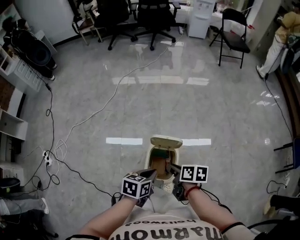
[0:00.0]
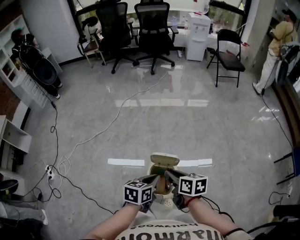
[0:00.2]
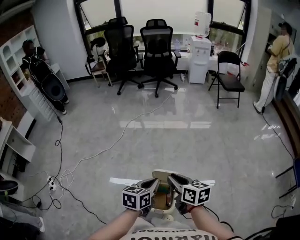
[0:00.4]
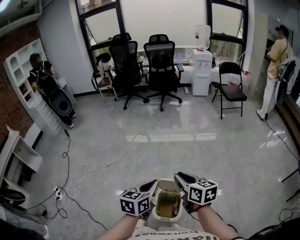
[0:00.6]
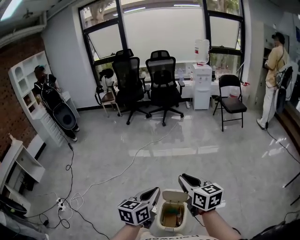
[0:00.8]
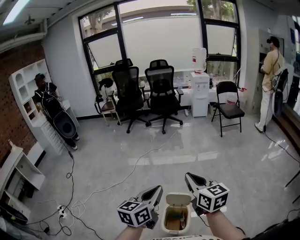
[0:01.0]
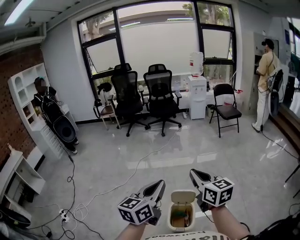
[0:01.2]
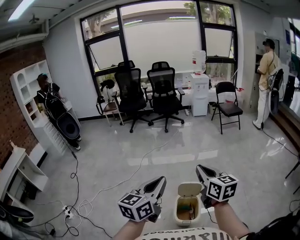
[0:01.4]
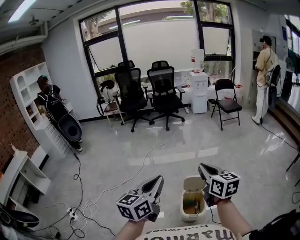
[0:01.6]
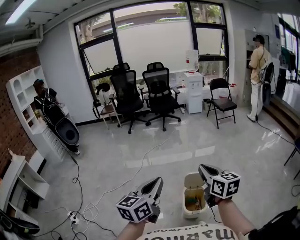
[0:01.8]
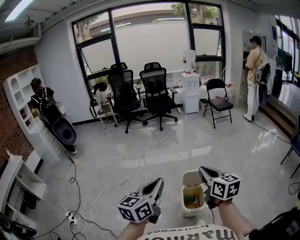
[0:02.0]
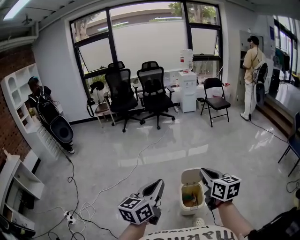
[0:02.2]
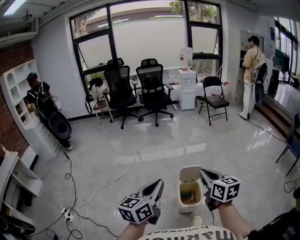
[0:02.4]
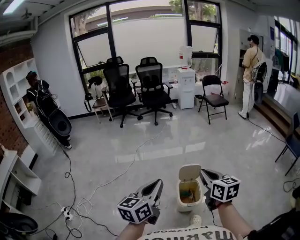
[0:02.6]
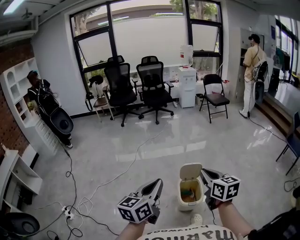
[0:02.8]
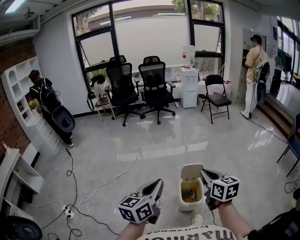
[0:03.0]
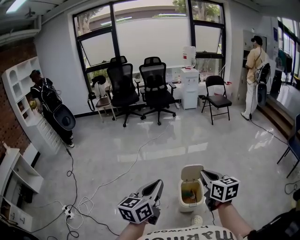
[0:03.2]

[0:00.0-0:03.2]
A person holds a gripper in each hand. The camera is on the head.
0:00.0 to 0:01.6: The right gripper shifts approximately 40 cm upward, and tips its fingers upward by roughly 30 degrees. The left gripper heads upward and to the left, covering some 40 cm, and points its fingers approximately 40 degrees further upward.
0:01.6 to 0:03.2: The right gripper is displaced backward and downward by about 10 cm; the left gripper is displaced backward by roughly 5 cm.

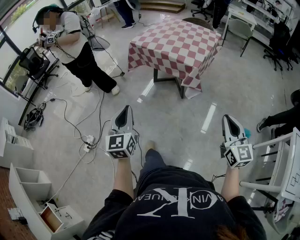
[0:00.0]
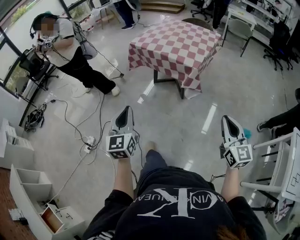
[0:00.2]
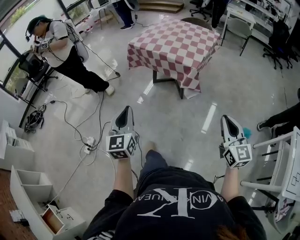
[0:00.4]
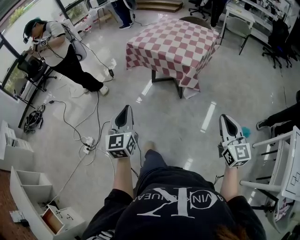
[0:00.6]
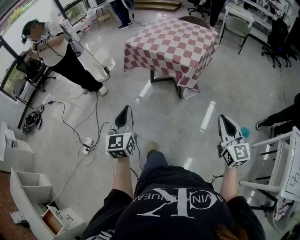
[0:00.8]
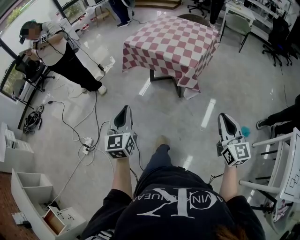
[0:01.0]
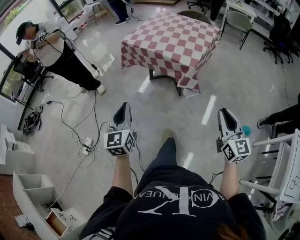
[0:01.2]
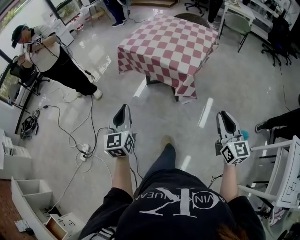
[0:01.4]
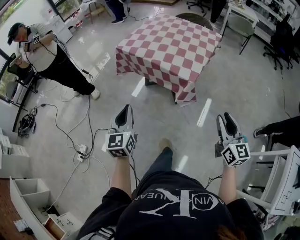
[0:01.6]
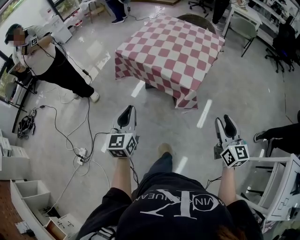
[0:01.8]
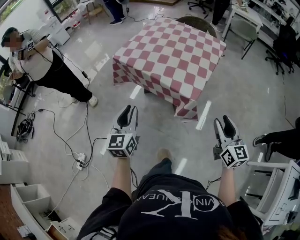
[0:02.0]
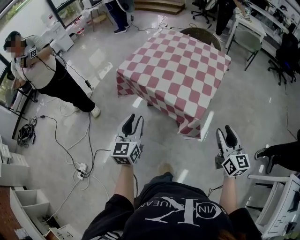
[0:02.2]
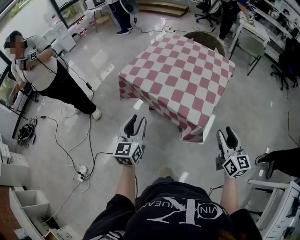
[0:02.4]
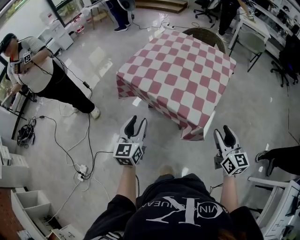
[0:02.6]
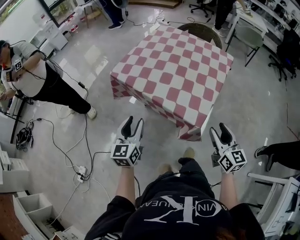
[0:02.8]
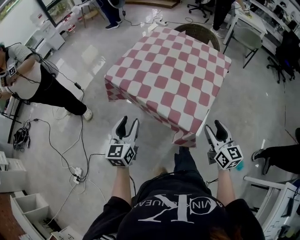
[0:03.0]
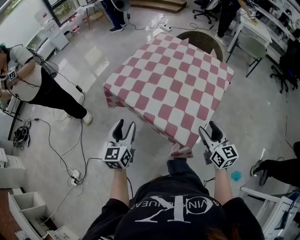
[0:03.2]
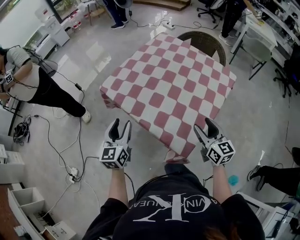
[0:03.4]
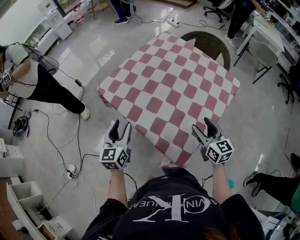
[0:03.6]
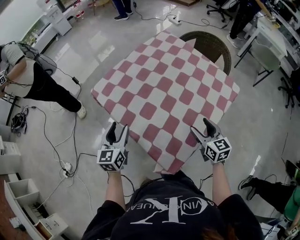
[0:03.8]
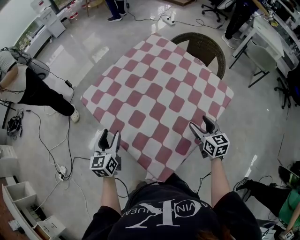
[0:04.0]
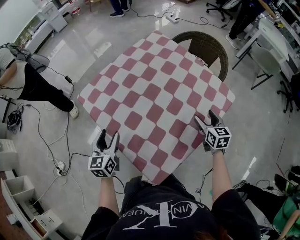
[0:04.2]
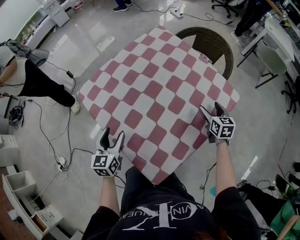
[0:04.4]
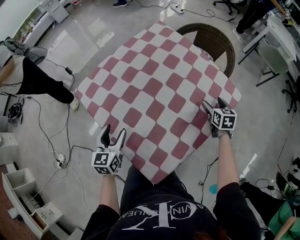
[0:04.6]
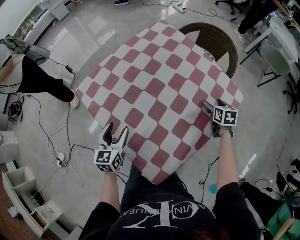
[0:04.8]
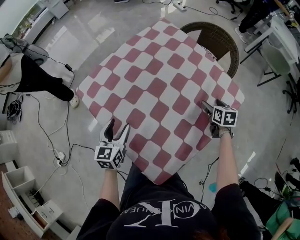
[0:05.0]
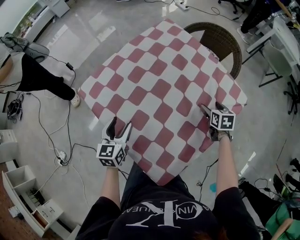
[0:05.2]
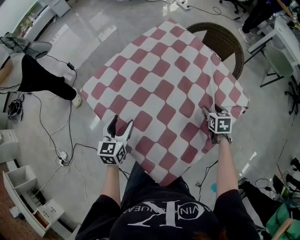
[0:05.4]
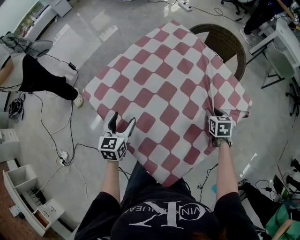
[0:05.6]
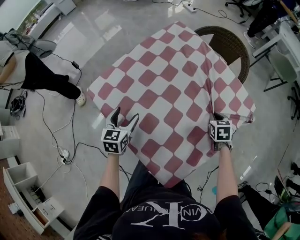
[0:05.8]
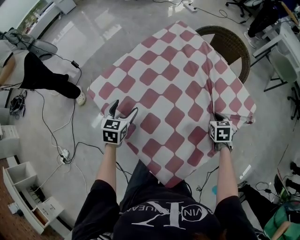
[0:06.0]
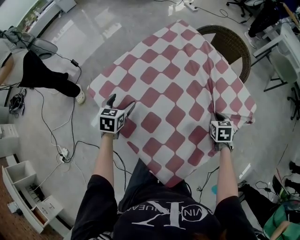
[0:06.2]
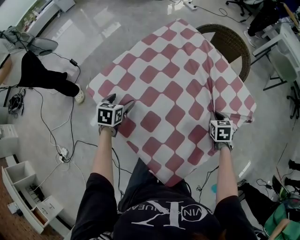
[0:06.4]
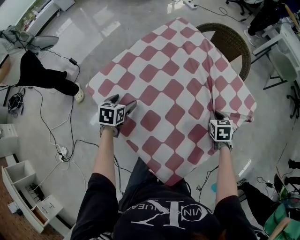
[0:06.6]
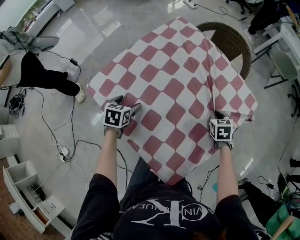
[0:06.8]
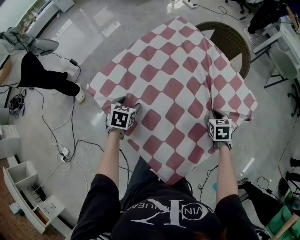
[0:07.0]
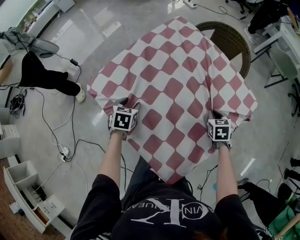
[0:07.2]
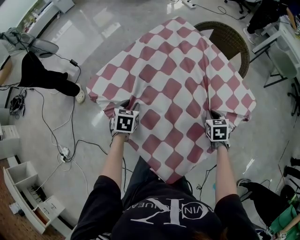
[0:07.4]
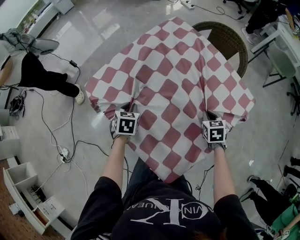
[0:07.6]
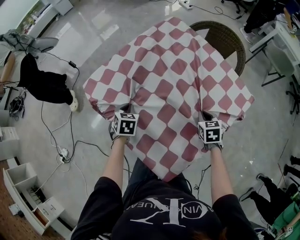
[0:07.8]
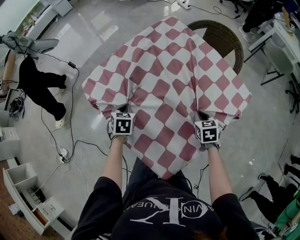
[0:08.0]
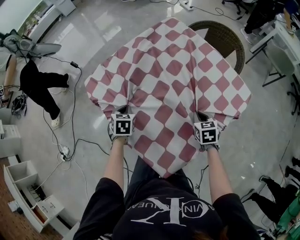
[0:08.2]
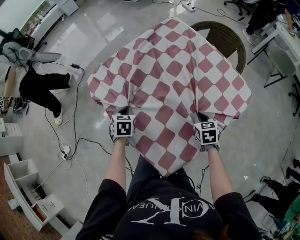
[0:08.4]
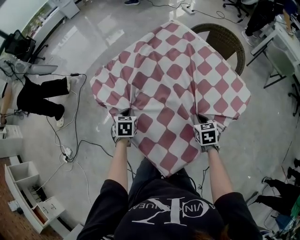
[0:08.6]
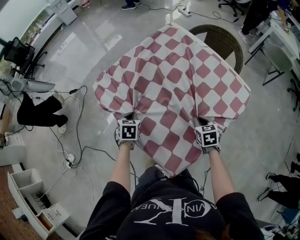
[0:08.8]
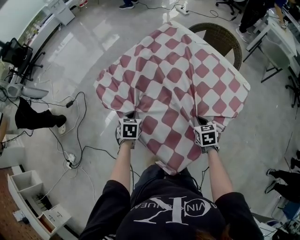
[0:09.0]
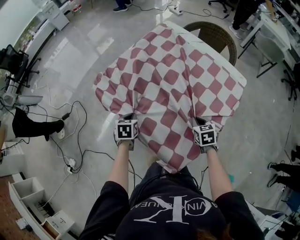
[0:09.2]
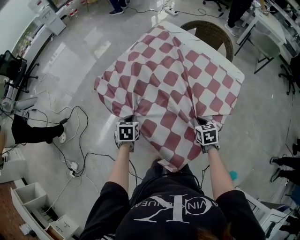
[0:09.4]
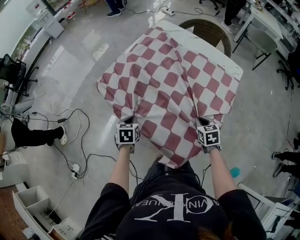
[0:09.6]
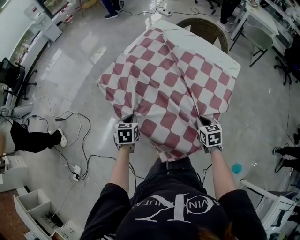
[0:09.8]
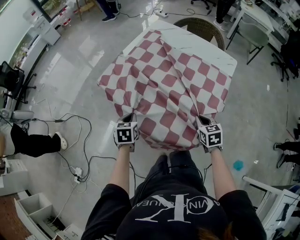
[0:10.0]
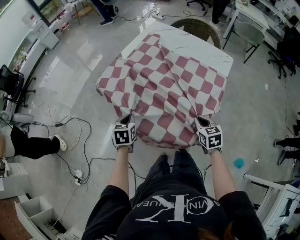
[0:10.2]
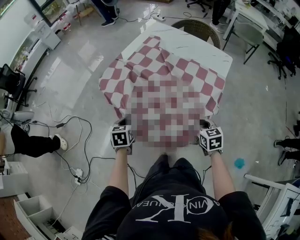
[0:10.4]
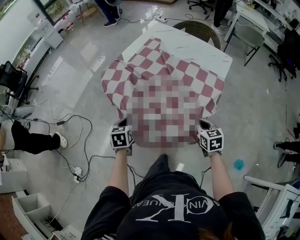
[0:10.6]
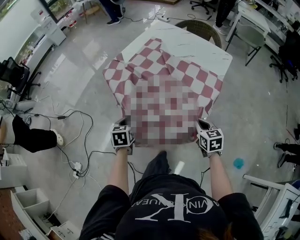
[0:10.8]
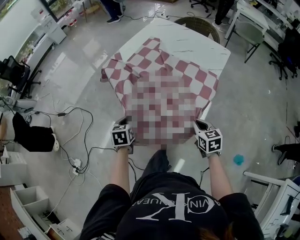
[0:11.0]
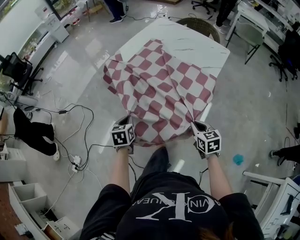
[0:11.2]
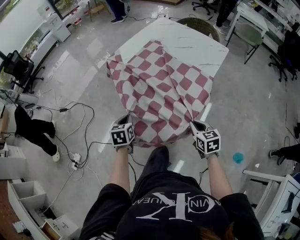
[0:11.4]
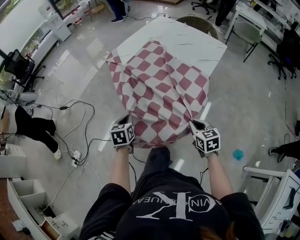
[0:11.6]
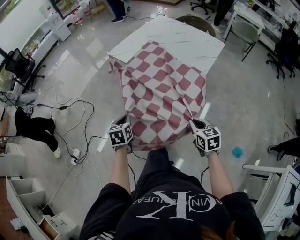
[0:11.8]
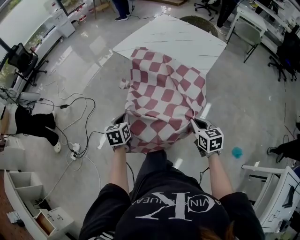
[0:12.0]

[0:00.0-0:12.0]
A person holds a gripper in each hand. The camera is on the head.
0:00.0 to 0:01.6: The two grippers go roughly 20 cm forward.
0:01.6 to 0:03.0: Both grippers travel together forward, roughly 30 cm. The left gripper opens up.
0:03.0 to 0:04.4: The left gripper shifts roughly 25 cm forward, to the right and downward; the right gripper goes some 40 cm forward and to the right, swivels some 30 degrees, and opens.
0:04.4 to 0:06.0: The left gripper travels forward and downward by some 15 cm. The right gripper moves to the left and downward, roughly 10 cm, swivels some 30 degrees, and closes its fingers.
0:06.0 to 0:07.6: The left gripper changes place by about 5 cm, and closes its fingers.
0:07.6 to 0:09.0: The right gripper shifts about 10 cm backward and to the left. Meanwhile the left gripper travels backward by some 5 cm.
0:09.0 to 0:10.4: The left gripper moves backward, to the left and upward, about 15 cm; the right gripper travels backward by roughly 20 cm.
0:10.4 to 0:12.0: Both grippers move backward, roughly 25 cm.

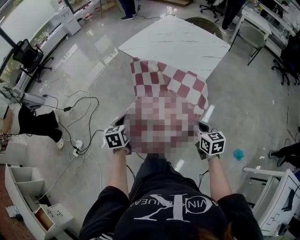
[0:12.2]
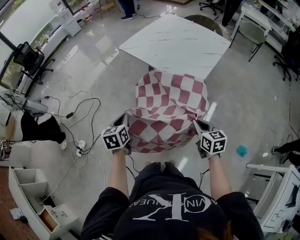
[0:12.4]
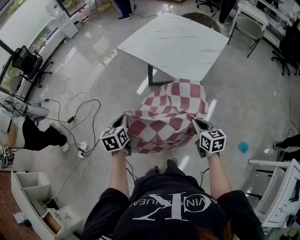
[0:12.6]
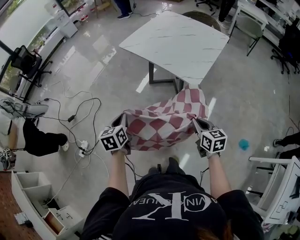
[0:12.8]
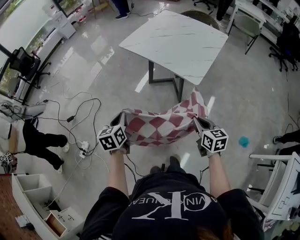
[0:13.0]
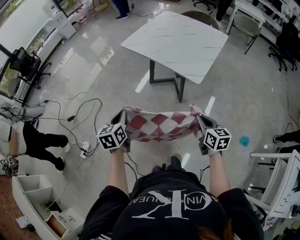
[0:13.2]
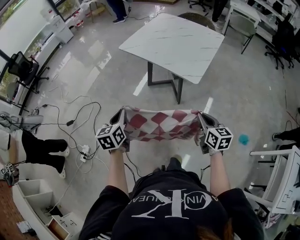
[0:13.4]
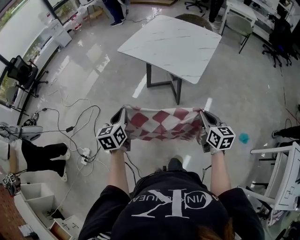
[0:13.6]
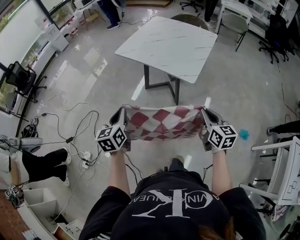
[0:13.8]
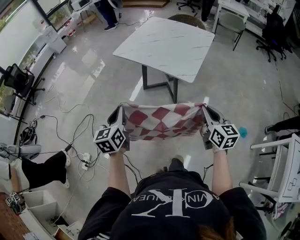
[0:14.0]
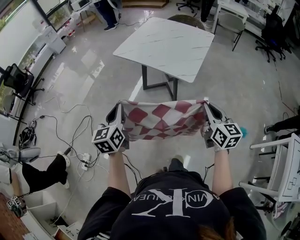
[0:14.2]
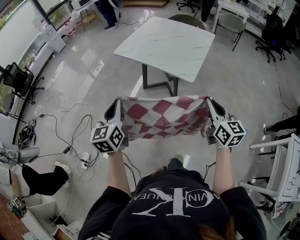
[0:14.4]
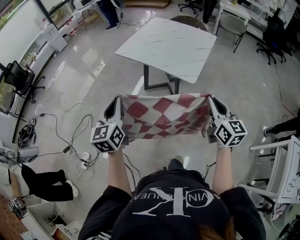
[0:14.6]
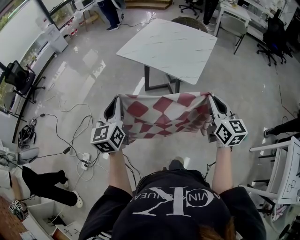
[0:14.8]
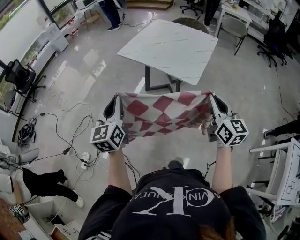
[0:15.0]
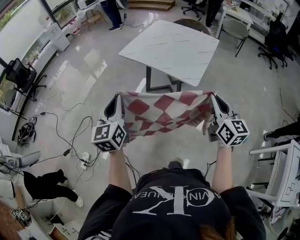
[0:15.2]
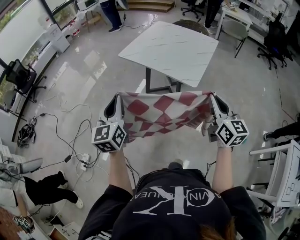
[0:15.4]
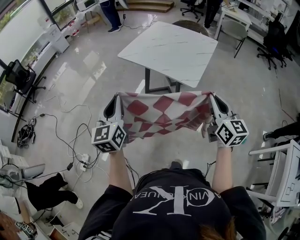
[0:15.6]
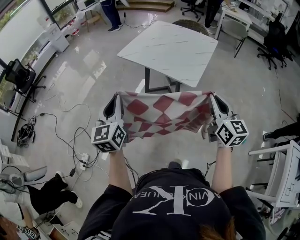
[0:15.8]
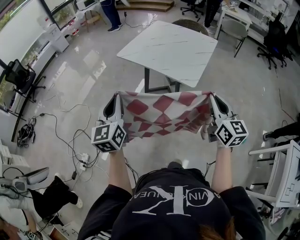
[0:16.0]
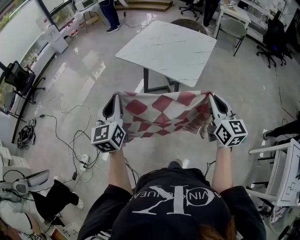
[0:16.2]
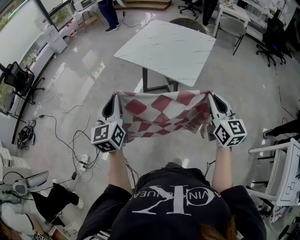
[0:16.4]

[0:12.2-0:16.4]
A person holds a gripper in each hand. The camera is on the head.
0:12.2 to 0:13.6: The right gripper shifts about 5 cm upward; the left gripper travels upward and to the left by approximately 10 cm.
0:13.6 to 0:15.0: The grippers both shift upward by roughly 15 cm. The left gripper swivels about 20 degrees.
0:15.0 to 0:16.4: The grippers make only small movements.

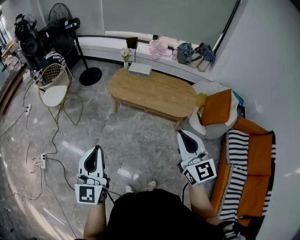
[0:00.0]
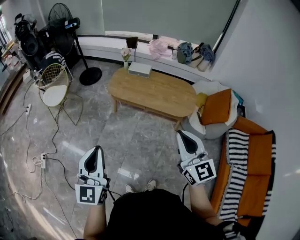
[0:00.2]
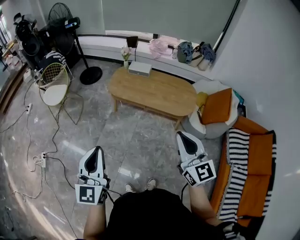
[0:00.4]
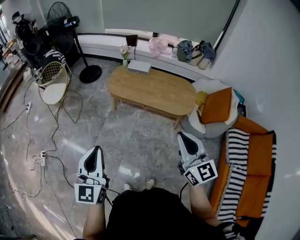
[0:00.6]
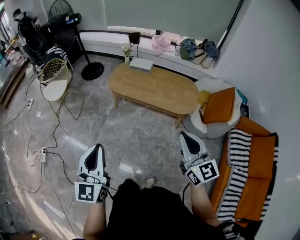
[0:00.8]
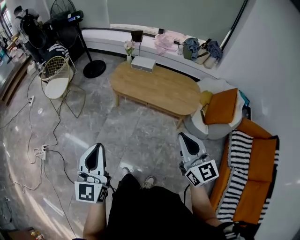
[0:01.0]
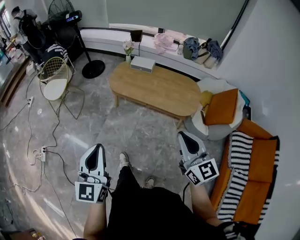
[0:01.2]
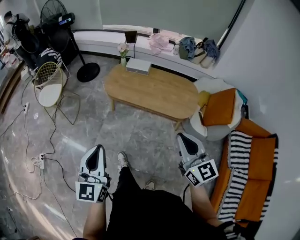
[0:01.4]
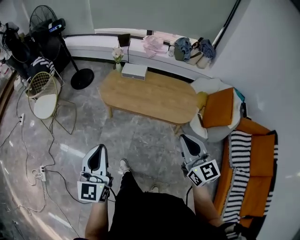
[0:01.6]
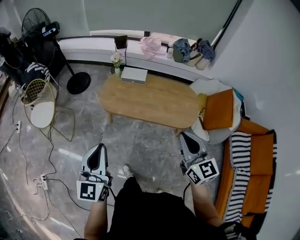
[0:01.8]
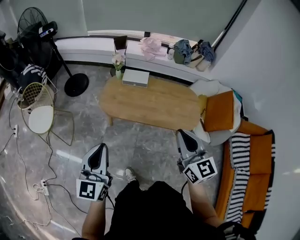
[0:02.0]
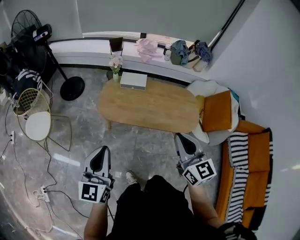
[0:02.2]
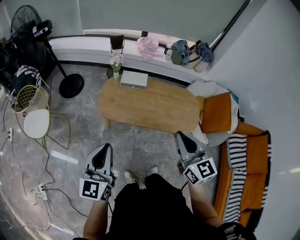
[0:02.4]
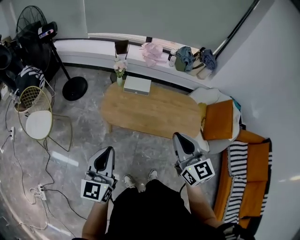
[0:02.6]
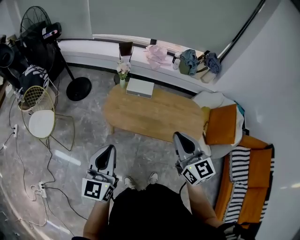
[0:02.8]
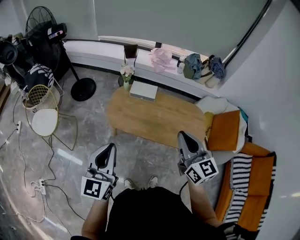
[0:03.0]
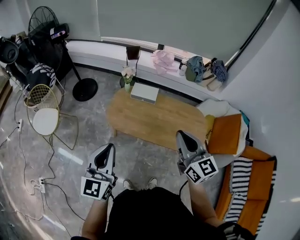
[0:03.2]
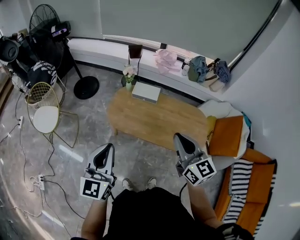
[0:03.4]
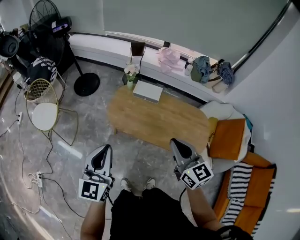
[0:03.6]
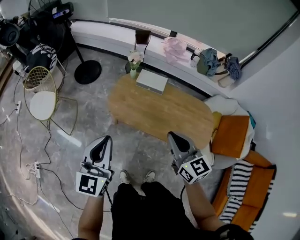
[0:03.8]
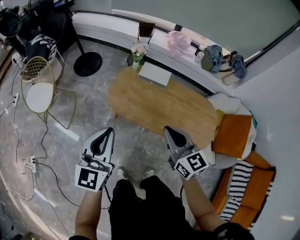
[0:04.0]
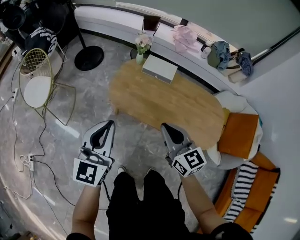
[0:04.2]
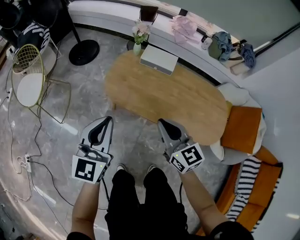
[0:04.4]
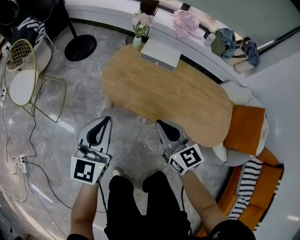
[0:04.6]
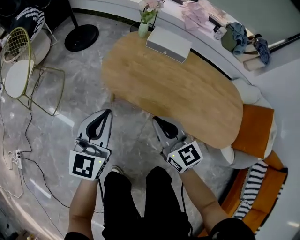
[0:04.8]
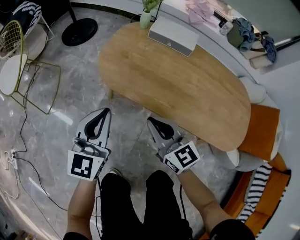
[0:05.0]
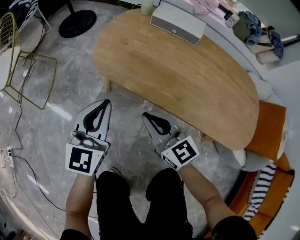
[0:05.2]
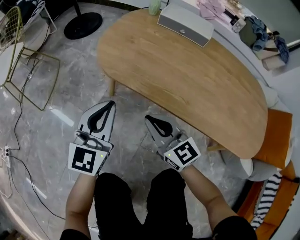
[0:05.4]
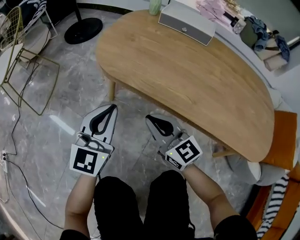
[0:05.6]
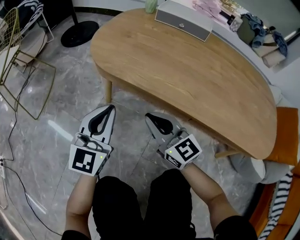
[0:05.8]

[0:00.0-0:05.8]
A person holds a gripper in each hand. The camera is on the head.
0:00.0 to 0:01.4: The left gripper goes some 10 cm forward; the right gripper moves forward and downward, about 10 cm.
0:01.4 to 0:02.8: The right gripper moves forward and to the left, roughly 30 cm. Meanwhile the left gripper heads forward, covering approximately 30 cm.
0:02.8 to 0:04.4: The grippers both shift downward and forward by some 25 cm.
0:04.4 to 0:05.8: The two grippers go approximately 40 cm downward.
